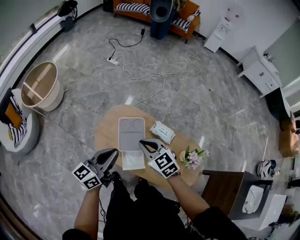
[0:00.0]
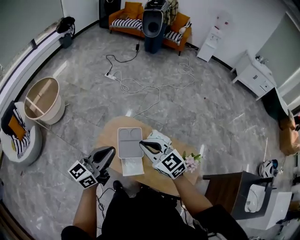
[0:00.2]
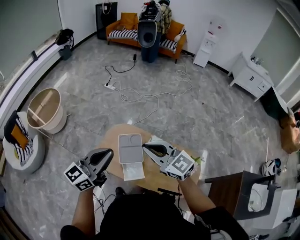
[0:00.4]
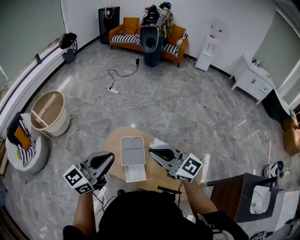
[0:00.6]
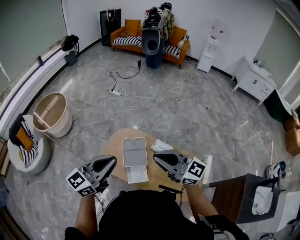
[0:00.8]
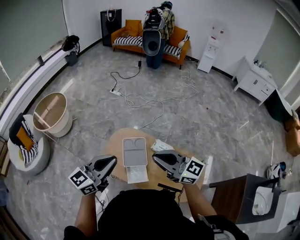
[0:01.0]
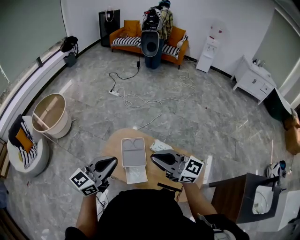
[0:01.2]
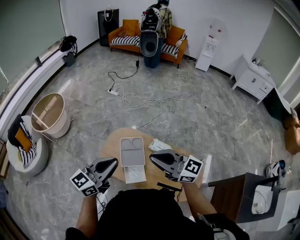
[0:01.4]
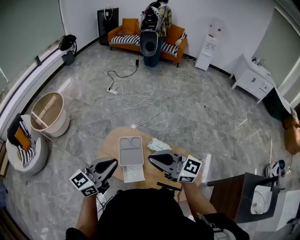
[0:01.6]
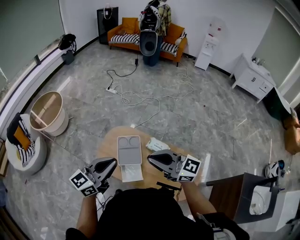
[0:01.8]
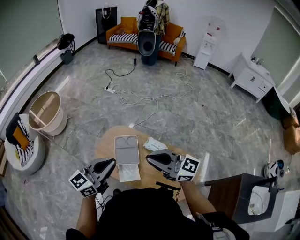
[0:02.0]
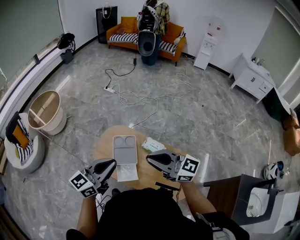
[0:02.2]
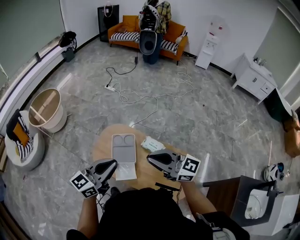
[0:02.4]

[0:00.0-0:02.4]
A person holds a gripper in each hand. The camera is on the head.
0:00.0 to 0:01.2: The right gripper shifts roughly 25 cm upward and backward, and tilts its fingers about 40 degrees upward. Meanwhile the left gripper shifts about 15 cm upward and backward.
0:01.2 to 0:02.4: Both grippers travel together to the right, about 10 cm.

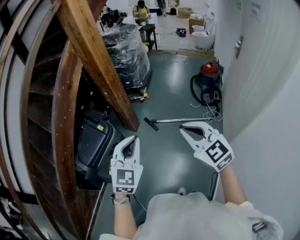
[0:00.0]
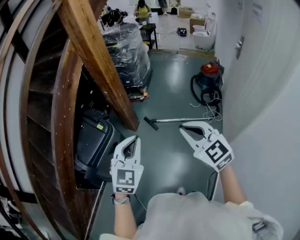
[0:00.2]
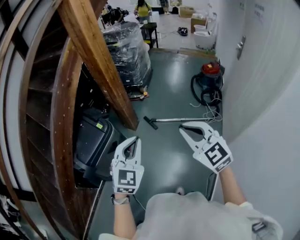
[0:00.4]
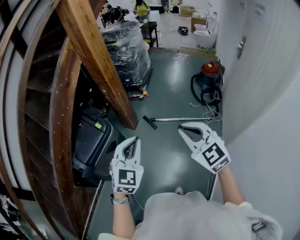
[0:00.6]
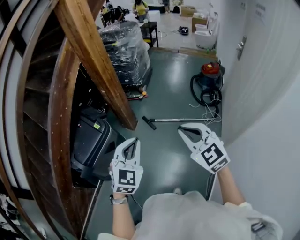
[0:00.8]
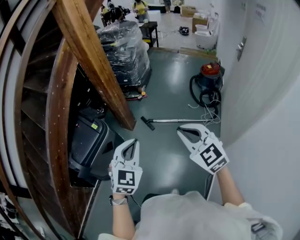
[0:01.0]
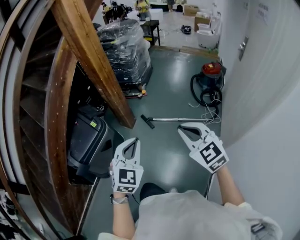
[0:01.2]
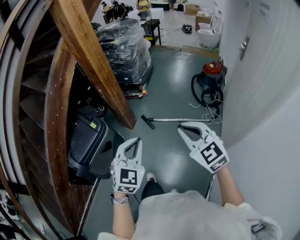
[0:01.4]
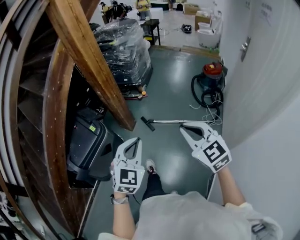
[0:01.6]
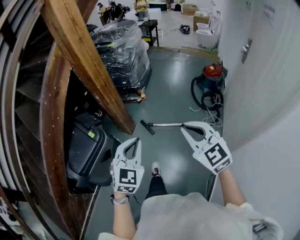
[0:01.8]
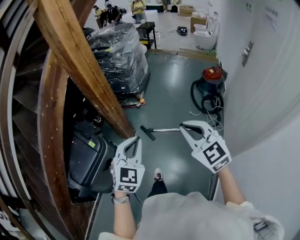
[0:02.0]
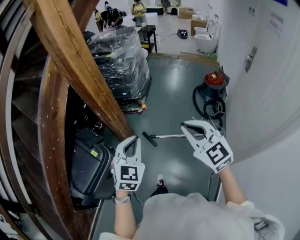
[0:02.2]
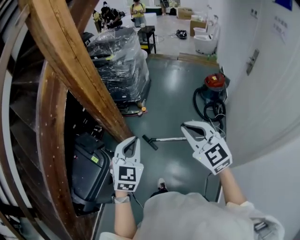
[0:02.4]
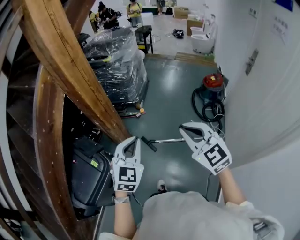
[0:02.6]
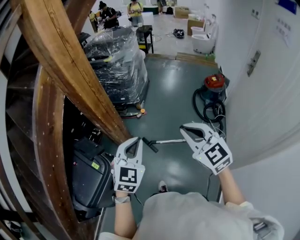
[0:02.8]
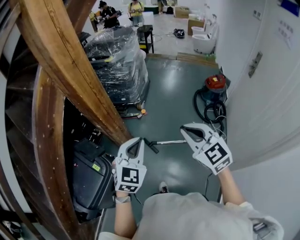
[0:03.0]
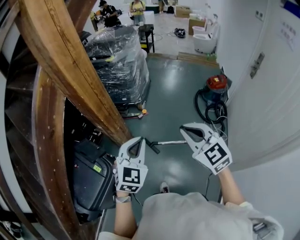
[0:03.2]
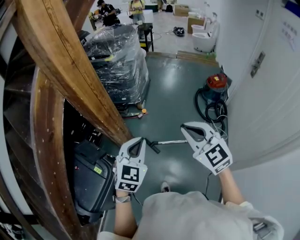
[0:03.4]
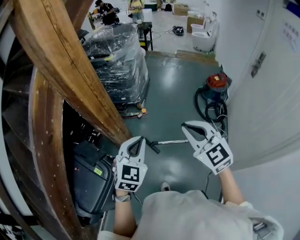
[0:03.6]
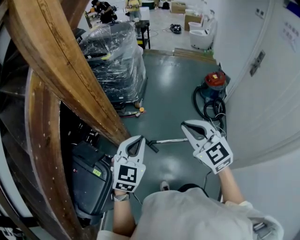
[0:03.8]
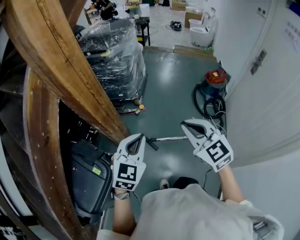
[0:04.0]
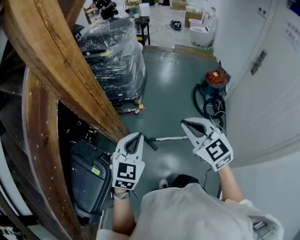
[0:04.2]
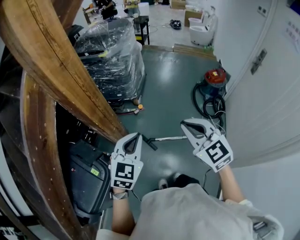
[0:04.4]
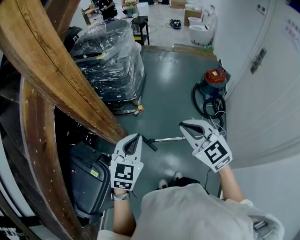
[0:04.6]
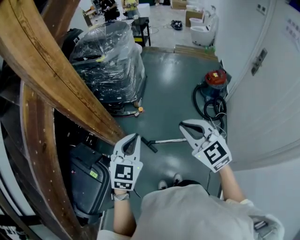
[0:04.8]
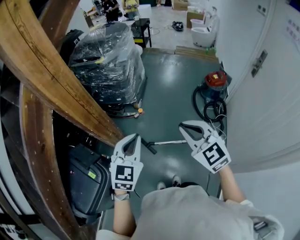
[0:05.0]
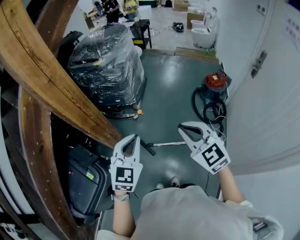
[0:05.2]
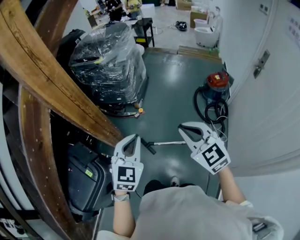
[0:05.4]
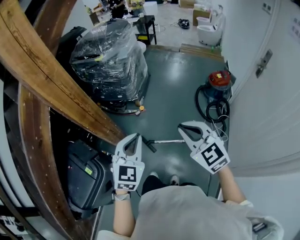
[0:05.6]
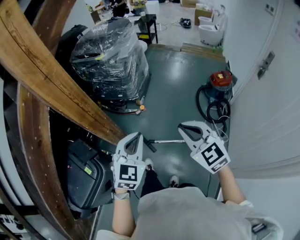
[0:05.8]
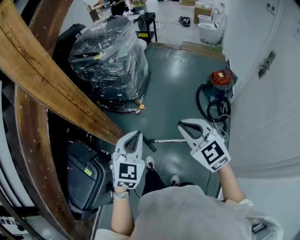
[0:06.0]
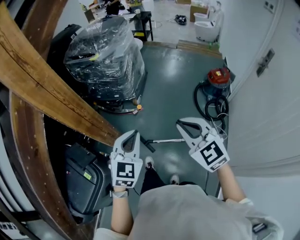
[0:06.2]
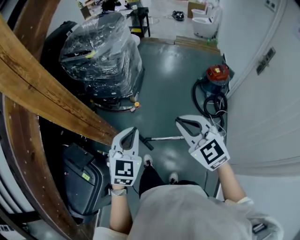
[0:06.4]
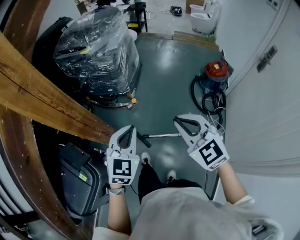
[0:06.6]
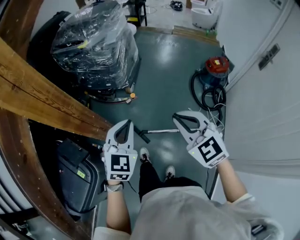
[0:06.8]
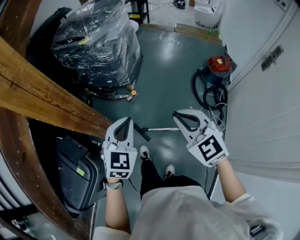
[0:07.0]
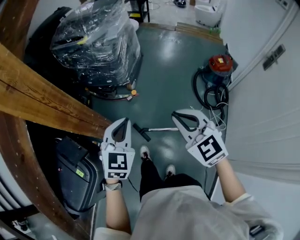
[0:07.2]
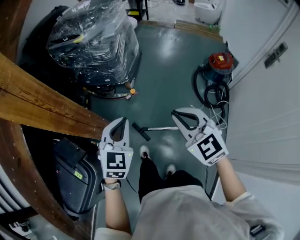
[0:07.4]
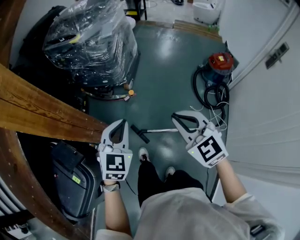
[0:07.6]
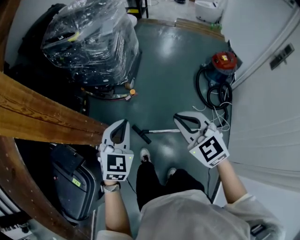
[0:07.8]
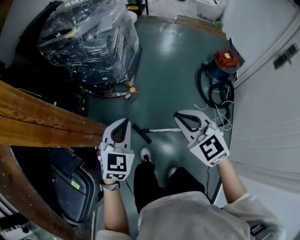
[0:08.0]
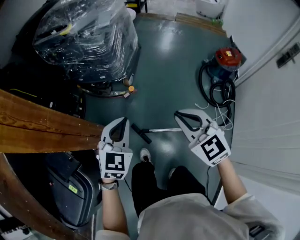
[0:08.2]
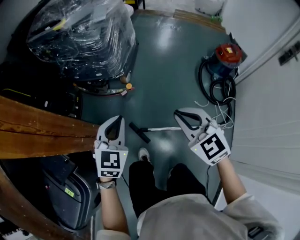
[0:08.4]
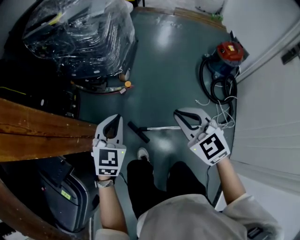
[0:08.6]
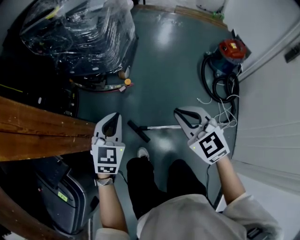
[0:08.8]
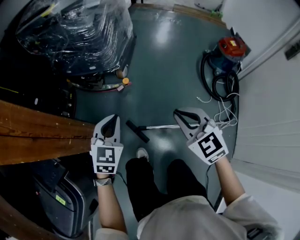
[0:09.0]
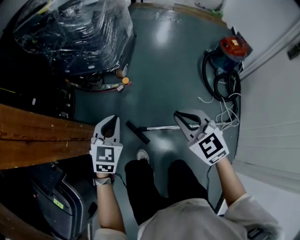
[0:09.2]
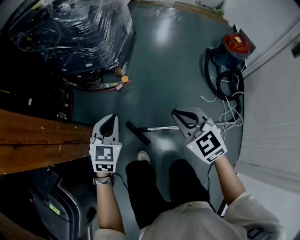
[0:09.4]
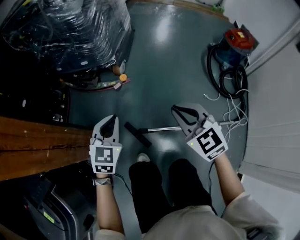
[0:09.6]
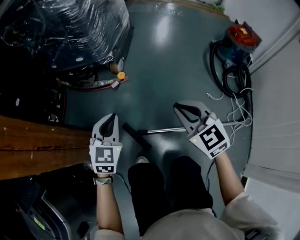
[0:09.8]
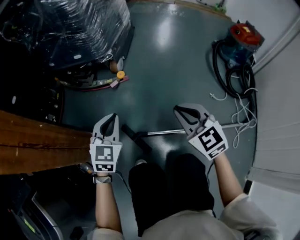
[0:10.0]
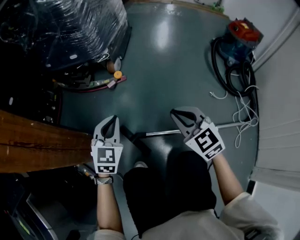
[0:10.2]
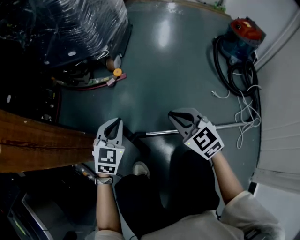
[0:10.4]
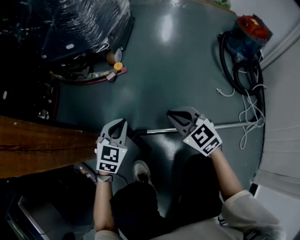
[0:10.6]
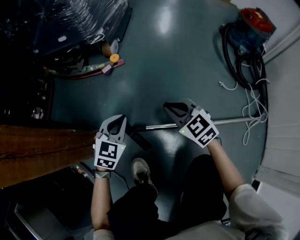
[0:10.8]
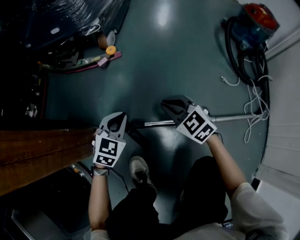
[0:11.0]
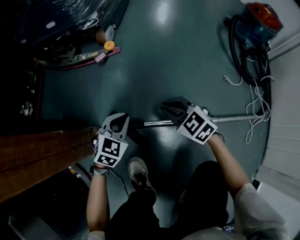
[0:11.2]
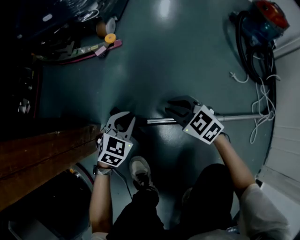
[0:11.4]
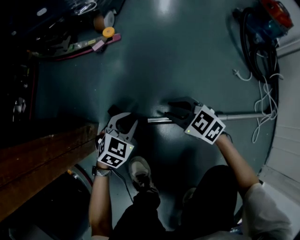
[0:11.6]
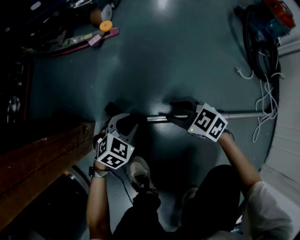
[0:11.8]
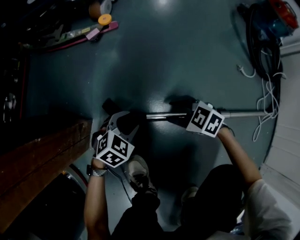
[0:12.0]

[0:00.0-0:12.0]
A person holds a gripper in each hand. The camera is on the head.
0:00.0 to 0:01.6: The two grippers go some 10 cm to the right and forward.
0:01.6 to 0:03.0: The grippers both shift forward by approximately 30 cm.
0:03.0 to 0:04.4: Both grippers move forward, some 5 cm.
0:04.4 to 0:06.0: Both grippers travel together to the right, some 10 cm.
0:06.0 to 0:07.6: The left gripper shifts roughly 15 cm forward and downward; the right gripper is displaced downward and forward by about 15 cm.
0:07.6 to 0:09.0: The two grippers go about 25 cm downward.
0:09.0 to 0:10.4: Both grippers move downward, some 35 cm.
0:10.4 to 0:12.0: Both grippers move downward, about 30 cm. The left gripper rotates roughly 40 degrees, and opens. The right gripper turns by approximately 40 degrees, and opens up.

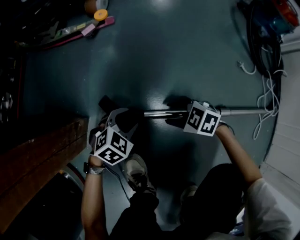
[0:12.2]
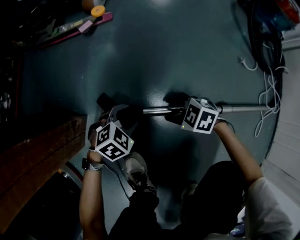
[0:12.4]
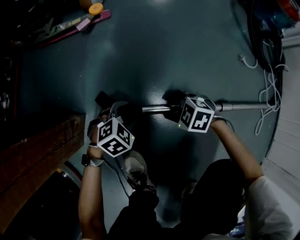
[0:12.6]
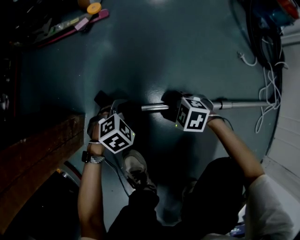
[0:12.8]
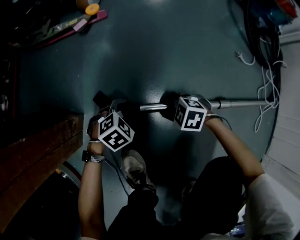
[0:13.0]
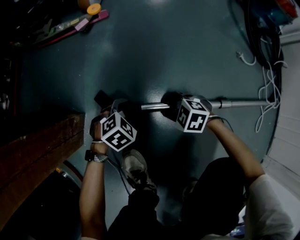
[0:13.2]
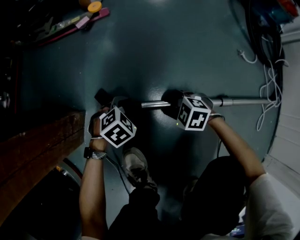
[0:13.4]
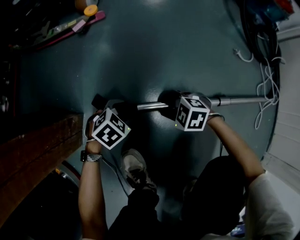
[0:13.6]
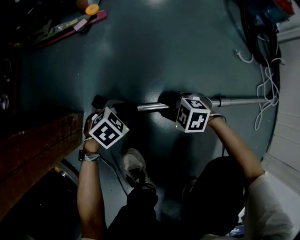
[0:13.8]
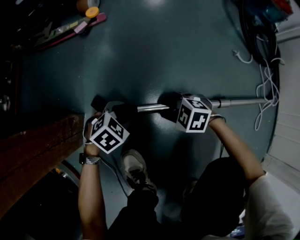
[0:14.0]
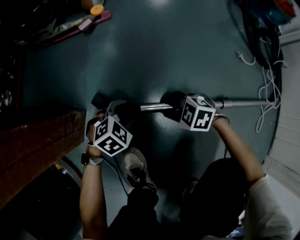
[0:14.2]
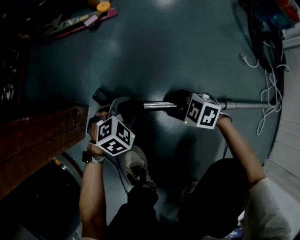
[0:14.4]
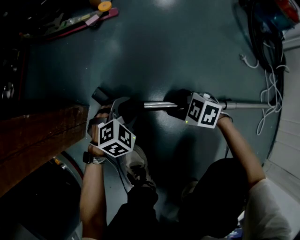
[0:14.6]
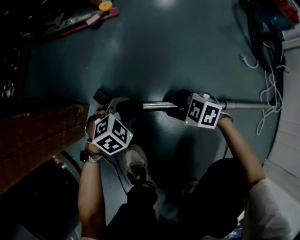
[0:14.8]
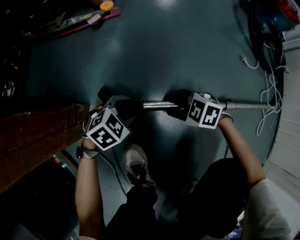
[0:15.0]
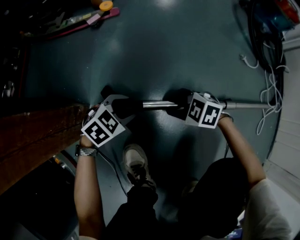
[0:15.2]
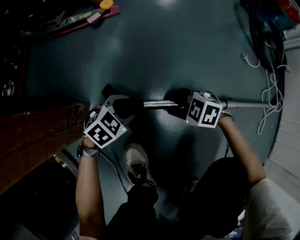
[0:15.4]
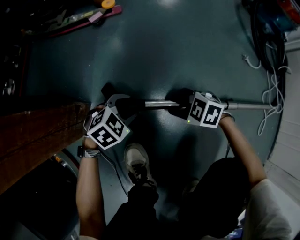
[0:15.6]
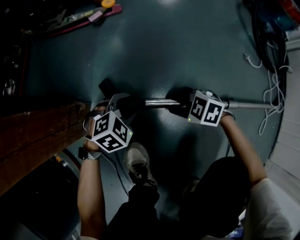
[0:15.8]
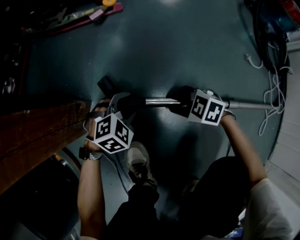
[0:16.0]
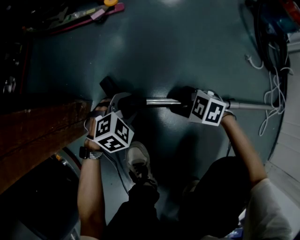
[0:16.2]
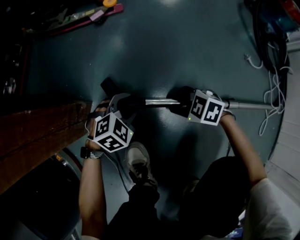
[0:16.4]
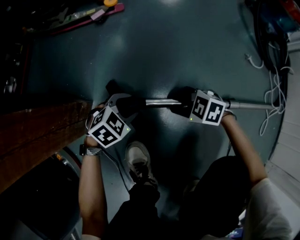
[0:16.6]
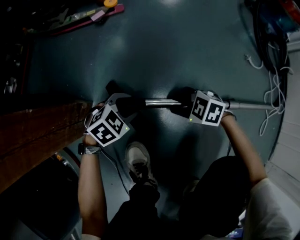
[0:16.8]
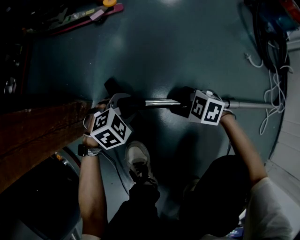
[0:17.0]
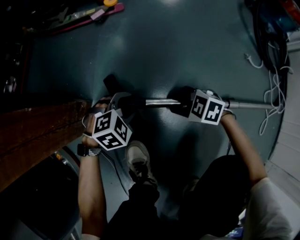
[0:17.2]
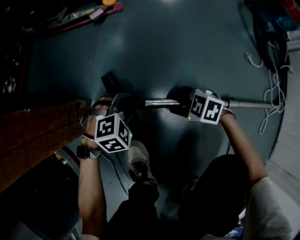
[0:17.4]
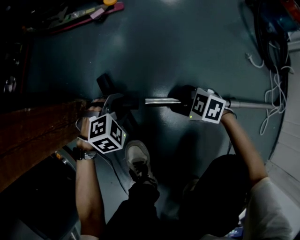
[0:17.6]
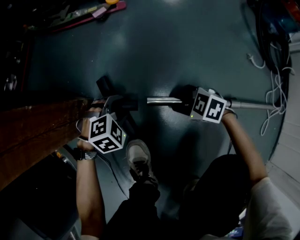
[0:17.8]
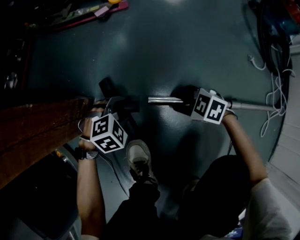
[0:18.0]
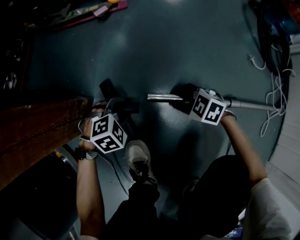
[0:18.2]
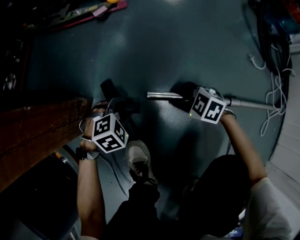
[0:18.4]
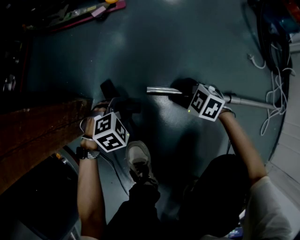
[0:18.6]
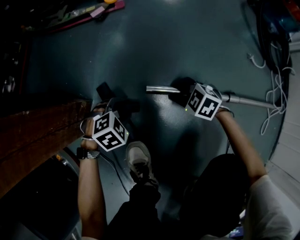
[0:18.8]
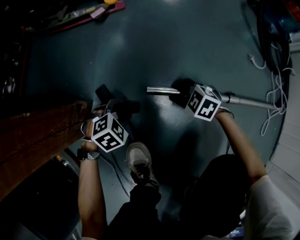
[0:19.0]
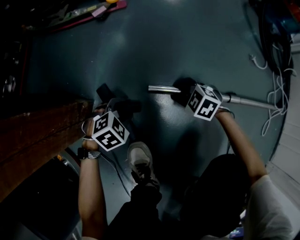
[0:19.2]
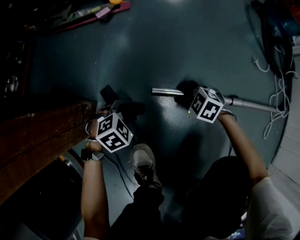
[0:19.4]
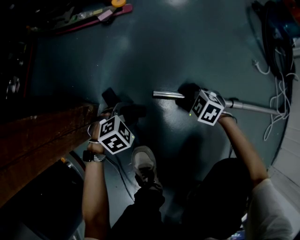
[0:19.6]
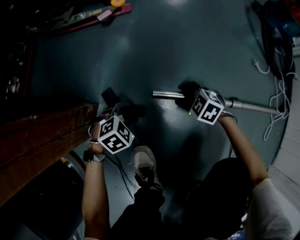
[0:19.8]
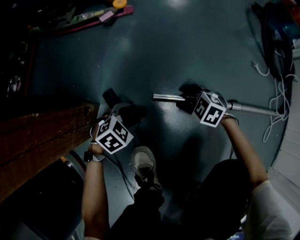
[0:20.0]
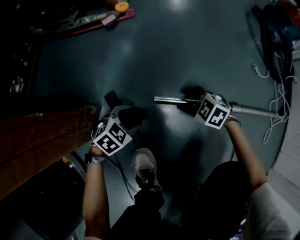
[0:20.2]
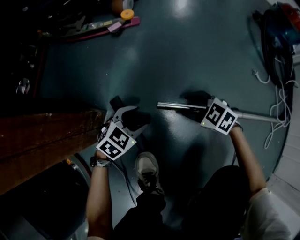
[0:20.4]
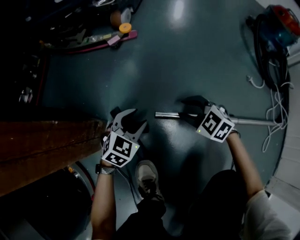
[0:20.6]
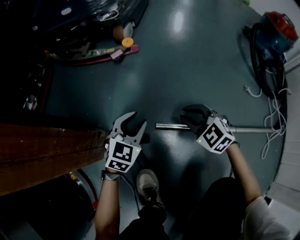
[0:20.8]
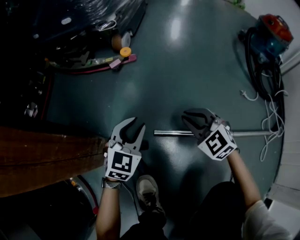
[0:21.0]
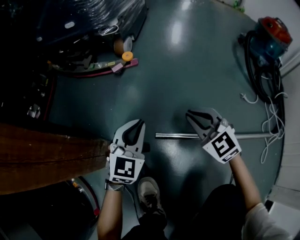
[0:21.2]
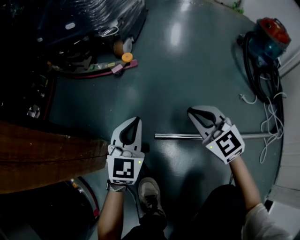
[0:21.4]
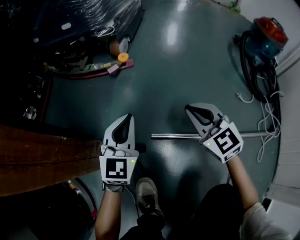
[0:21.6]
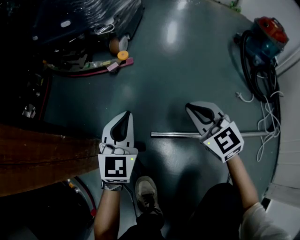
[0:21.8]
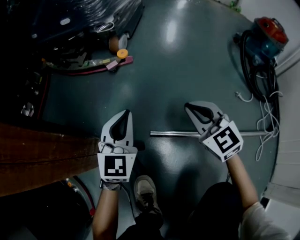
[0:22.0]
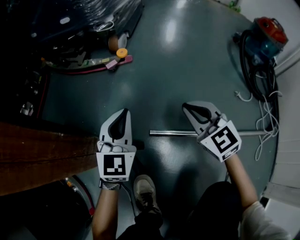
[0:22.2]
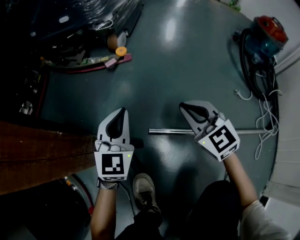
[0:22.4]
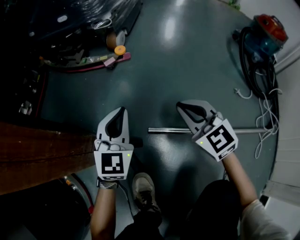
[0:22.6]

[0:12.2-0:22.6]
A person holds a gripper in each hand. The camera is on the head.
0:12.2 to 0:13.6: The grippers make only small movements.
0:18.2 to 0:19.6: The right gripper changes place by about 5 cm.
0:19.6 to 0:21.2: The grippers both shift upward by approximately 25 cm. The left gripper tilts its fingers about 50 degrees upward, and closes, while the right gripper tilts its fingers approximately 30 degrees upward, and closes its fingers.
0:21.2 to 0:22.6: The left gripper moves about 5 cm.
